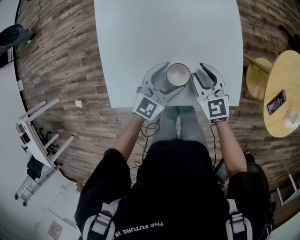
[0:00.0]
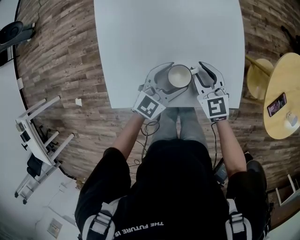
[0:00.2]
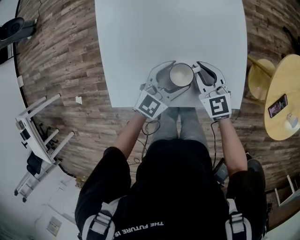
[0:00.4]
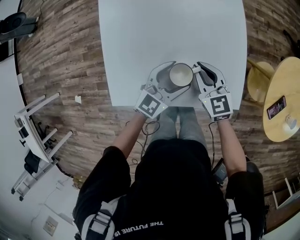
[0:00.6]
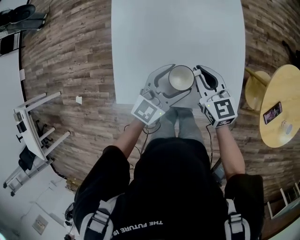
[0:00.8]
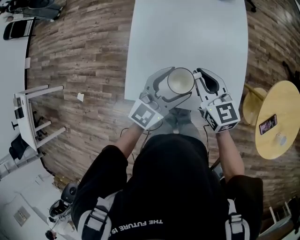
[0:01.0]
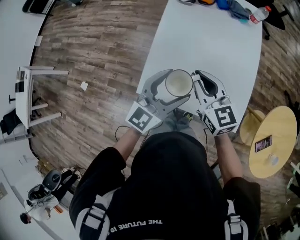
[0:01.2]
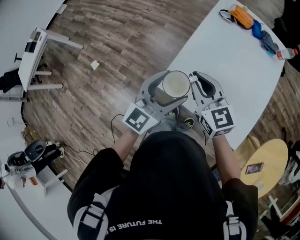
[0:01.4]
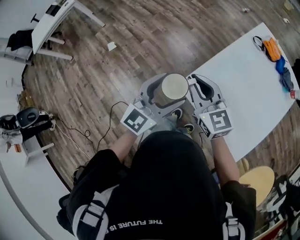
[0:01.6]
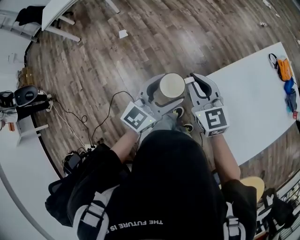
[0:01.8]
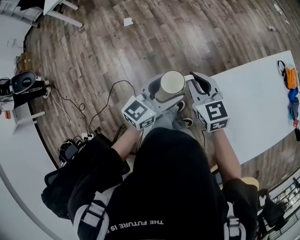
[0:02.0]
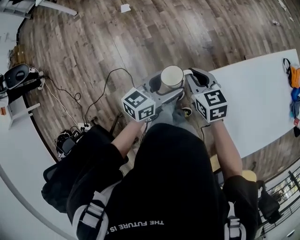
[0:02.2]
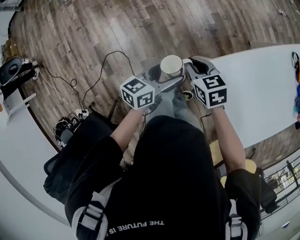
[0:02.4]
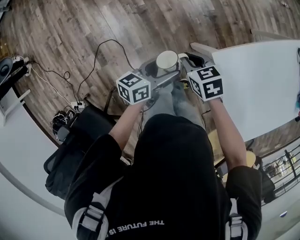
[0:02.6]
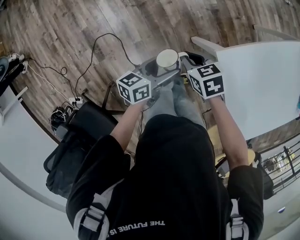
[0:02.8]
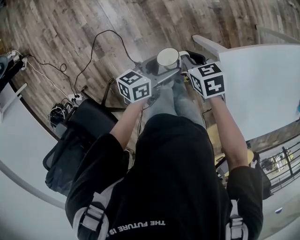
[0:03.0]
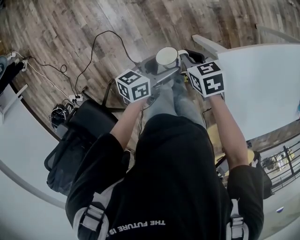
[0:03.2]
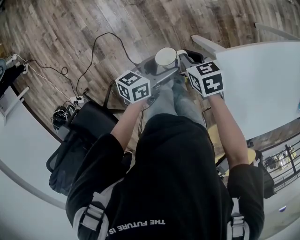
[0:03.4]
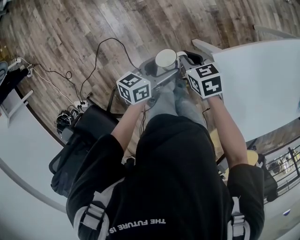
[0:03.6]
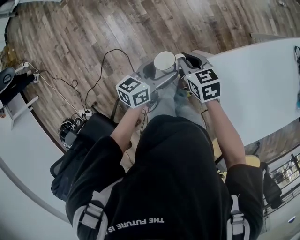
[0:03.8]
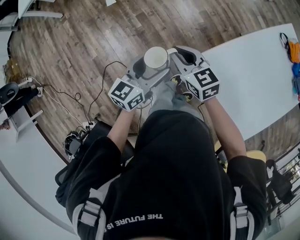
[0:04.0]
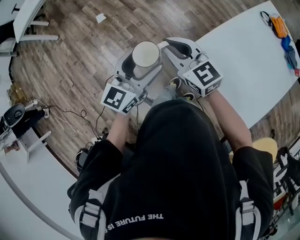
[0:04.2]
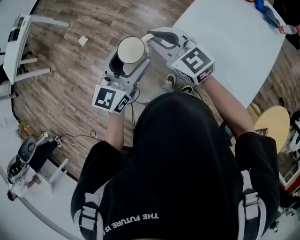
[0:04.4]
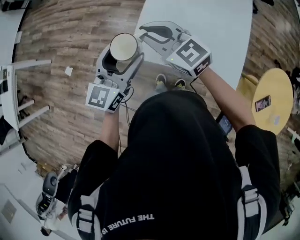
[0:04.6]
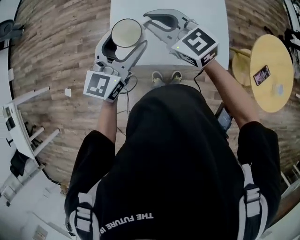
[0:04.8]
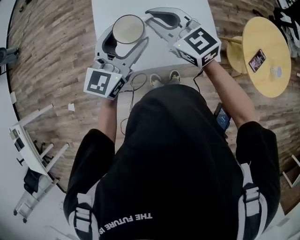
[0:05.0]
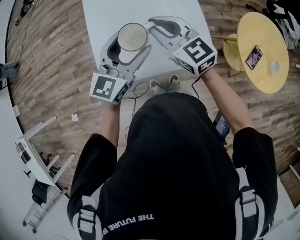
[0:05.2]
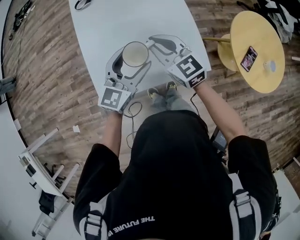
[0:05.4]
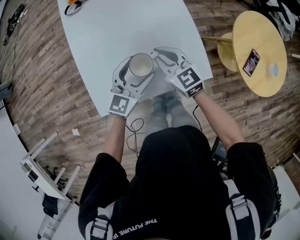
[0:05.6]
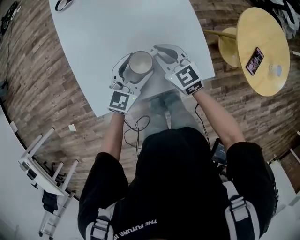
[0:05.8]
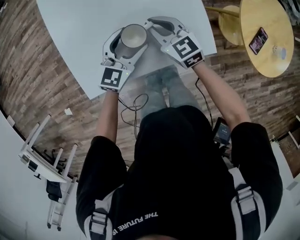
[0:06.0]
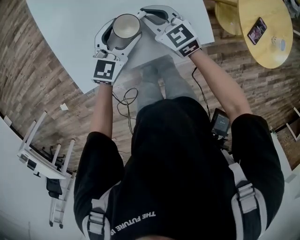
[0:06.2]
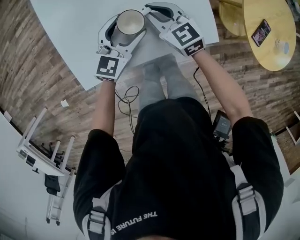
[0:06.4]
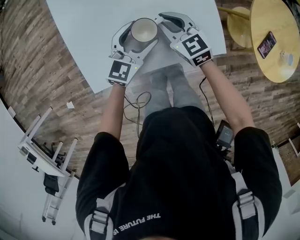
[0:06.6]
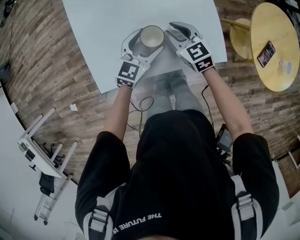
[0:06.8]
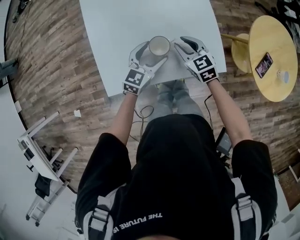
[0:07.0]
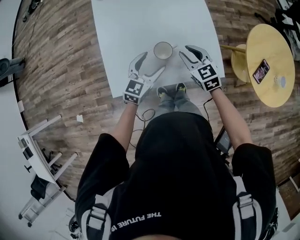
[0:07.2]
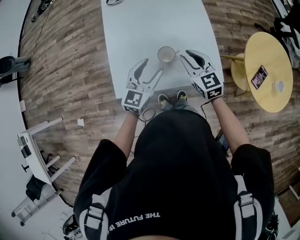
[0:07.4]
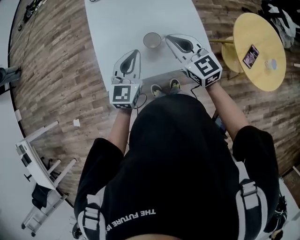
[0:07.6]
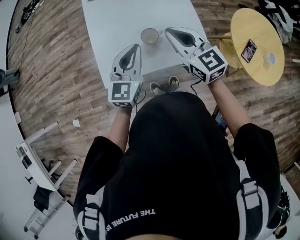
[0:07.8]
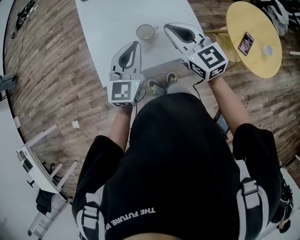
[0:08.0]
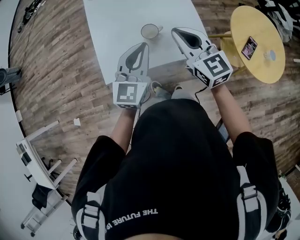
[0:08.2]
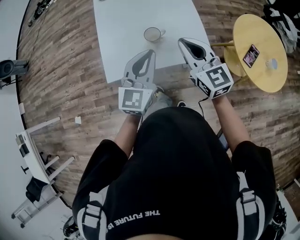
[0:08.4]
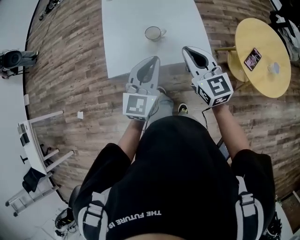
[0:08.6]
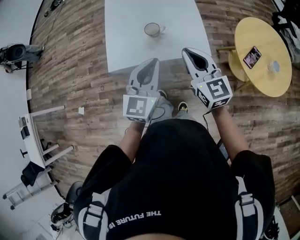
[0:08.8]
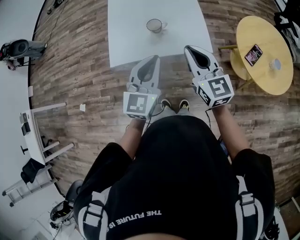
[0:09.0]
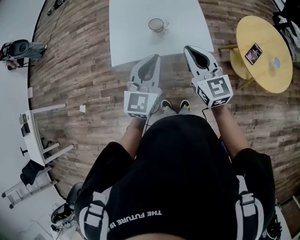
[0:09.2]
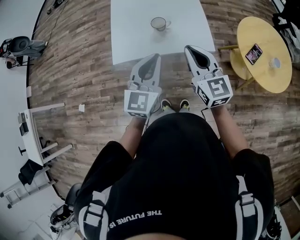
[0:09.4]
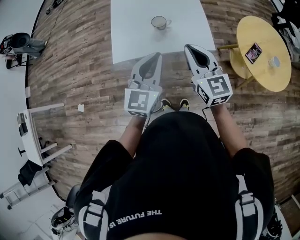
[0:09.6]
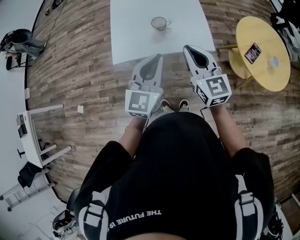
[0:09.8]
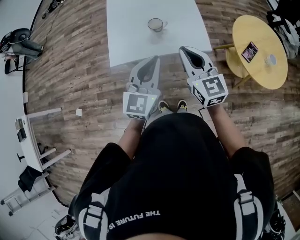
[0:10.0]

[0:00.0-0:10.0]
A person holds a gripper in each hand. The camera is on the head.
0:00.0 to 0:01.4: The right gripper ends up approximately 35 cm from where it was, and changes its angle by approximately 40 degrees. The left gripper is displaced upward by approximately 25 cm, and rotates about 40 degrees.
0:01.4 to 0:02.8: The left gripper changes place by about 40 cm, and twists about 60 degrees counterclockwise, seen from behind; the right gripper changes place by some 40 cm, and points its fingers about 40 degrees further downward.
0:02.8 to 0:04.2: The two grippers go about 25 cm upward. The right gripper angles its fingers upward, by some 50 degrees. The left gripper rotates around the line of its fingers by about 50 degrees, clockwise from behind.
0:04.2 to 0:05.8: The pair of grippers is taken roughly 50 cm. The right gripper turns by about 70 degrees, while the left gripper turns by approximately 70 degrees.
0:05.8 to 0:07.2: The left gripper ends up about 5 cm from where it was.
0:07.2 to 0:08.6: Both grippers travel together upward and backward, about 25 cm. The right gripper changes its angle by roughly 20 degrees, and closes up; the left gripper rotates about 20 degrees, and closes its fingers.
0:08.6 to 0:10.0: Both grippers travel together backward, some 10 cm.

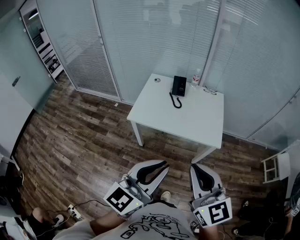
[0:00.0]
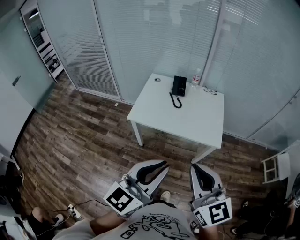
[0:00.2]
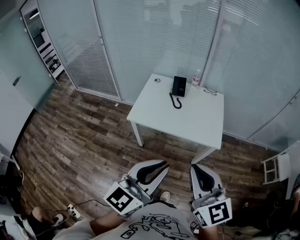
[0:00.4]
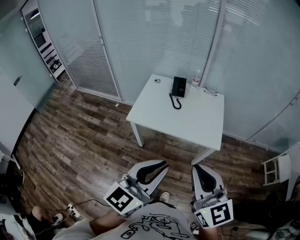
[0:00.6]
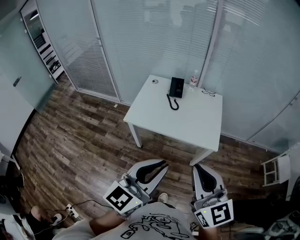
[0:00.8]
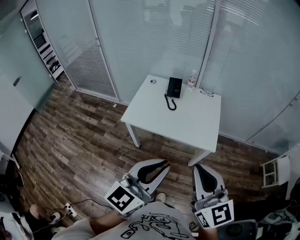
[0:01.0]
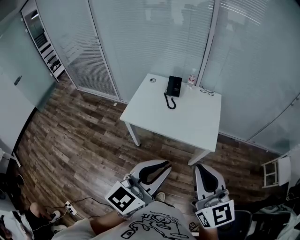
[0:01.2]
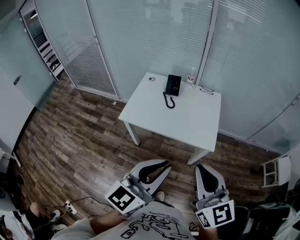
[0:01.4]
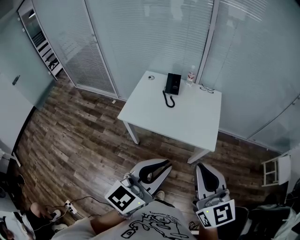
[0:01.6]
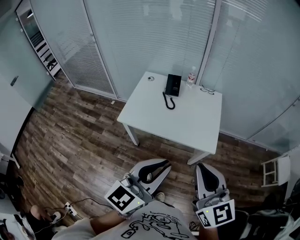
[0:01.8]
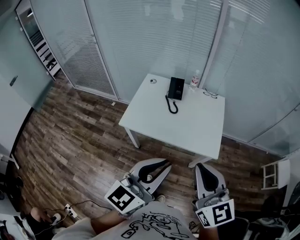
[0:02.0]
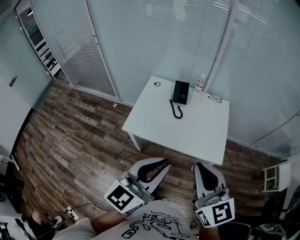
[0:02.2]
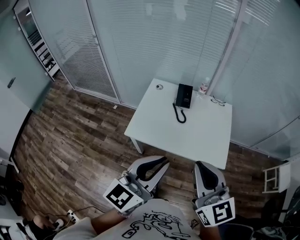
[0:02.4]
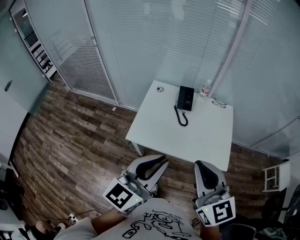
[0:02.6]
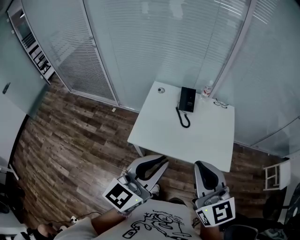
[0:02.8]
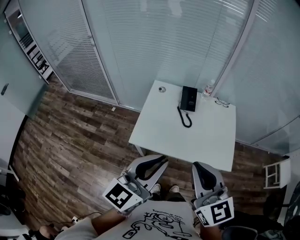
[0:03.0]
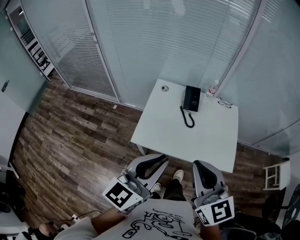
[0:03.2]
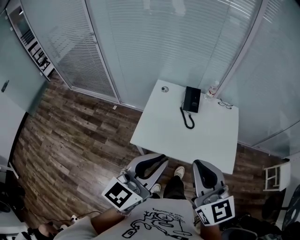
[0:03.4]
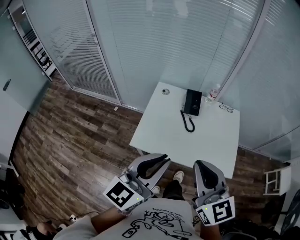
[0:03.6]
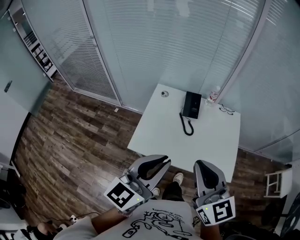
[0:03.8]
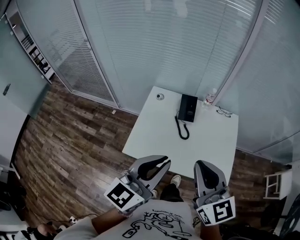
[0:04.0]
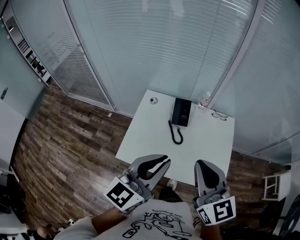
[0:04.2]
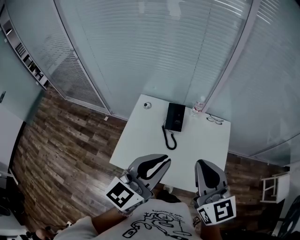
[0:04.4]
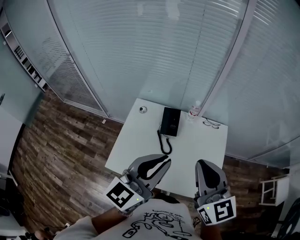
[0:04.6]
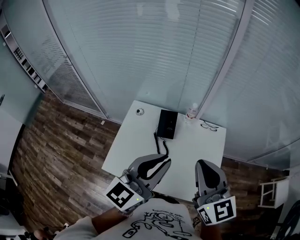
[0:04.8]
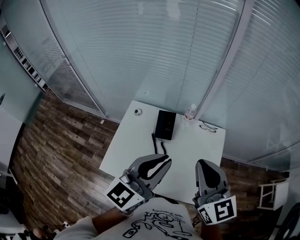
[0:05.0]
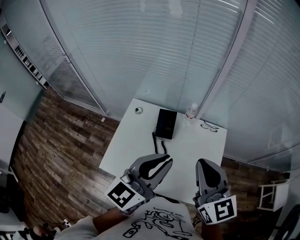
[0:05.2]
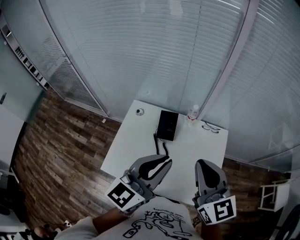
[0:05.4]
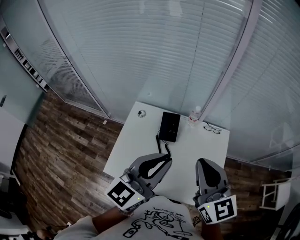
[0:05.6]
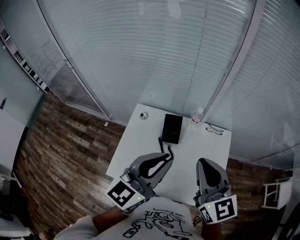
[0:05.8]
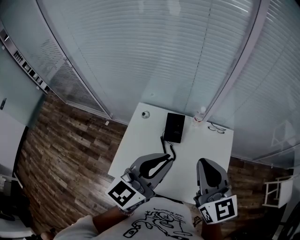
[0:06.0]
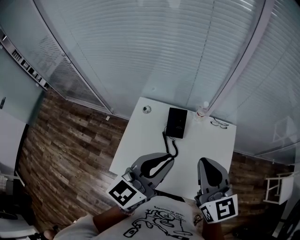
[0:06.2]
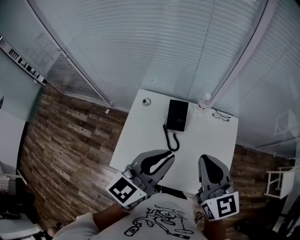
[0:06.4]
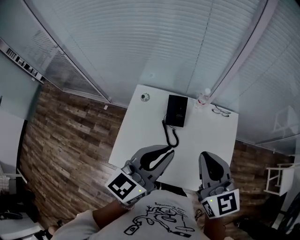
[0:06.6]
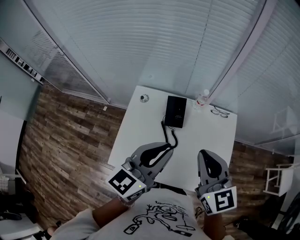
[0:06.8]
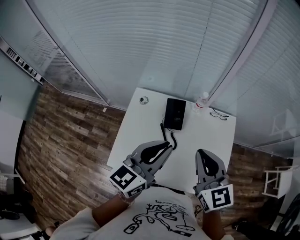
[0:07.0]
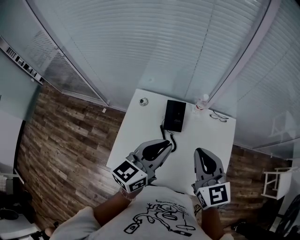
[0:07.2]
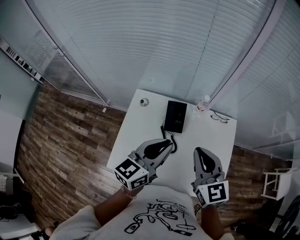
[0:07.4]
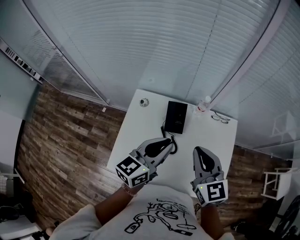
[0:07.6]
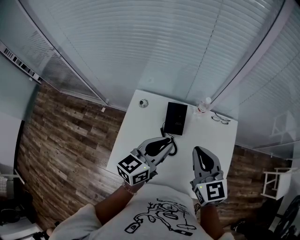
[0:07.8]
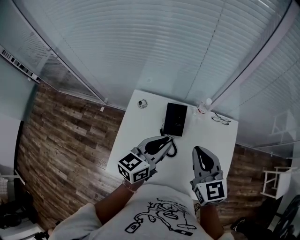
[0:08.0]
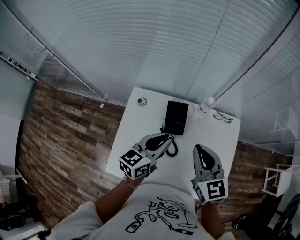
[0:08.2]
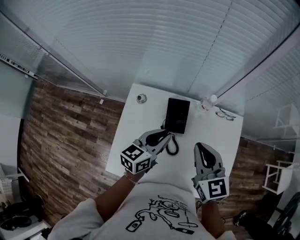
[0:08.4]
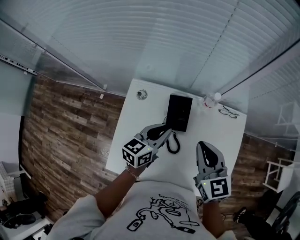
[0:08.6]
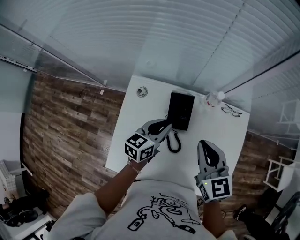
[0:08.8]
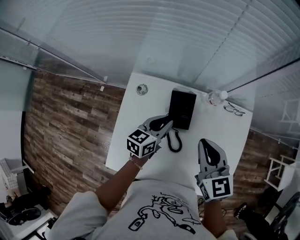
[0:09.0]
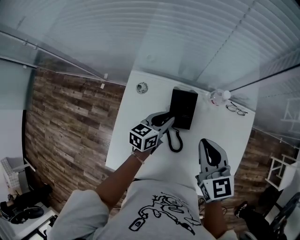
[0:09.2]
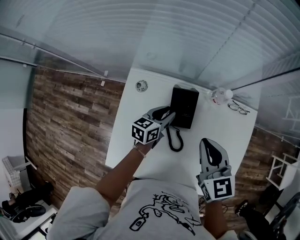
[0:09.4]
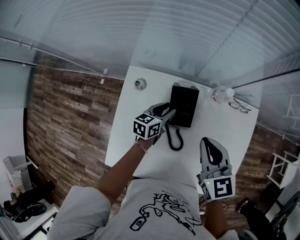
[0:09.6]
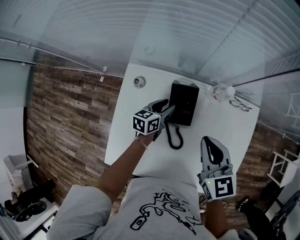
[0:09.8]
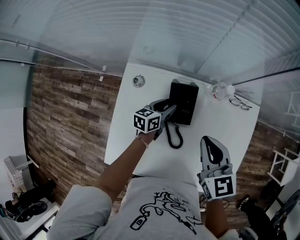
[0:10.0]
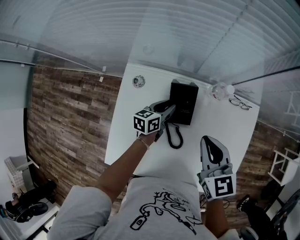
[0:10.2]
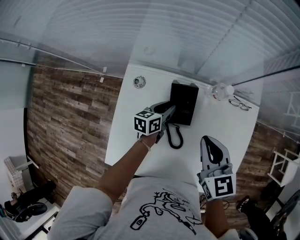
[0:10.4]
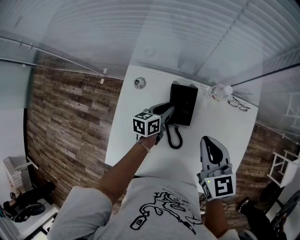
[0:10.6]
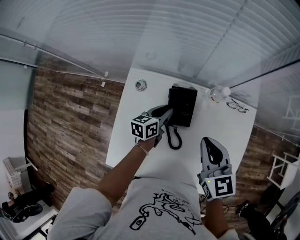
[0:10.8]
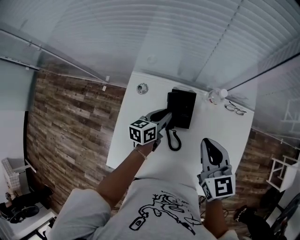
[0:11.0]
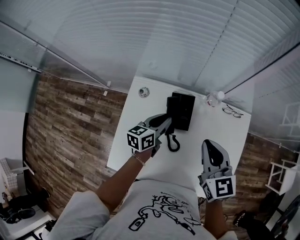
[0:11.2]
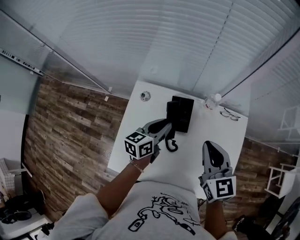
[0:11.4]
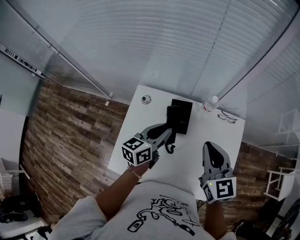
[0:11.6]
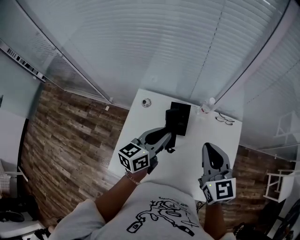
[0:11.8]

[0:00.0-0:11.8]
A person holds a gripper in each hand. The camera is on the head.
0:00.0 to 0:01.4: Both grippers travel together to the right, about 10 cm.
0:01.4 to 0:03.0: Both grippers move to the left and forward, some 30 cm.
0:03.0 to 0:04.4: Both grippers move forward and to the right, roughly 20 cm.
0:04.4 to 0:06.0: Both grippers move forward, some 10 cm.
0:06.0 to 0:07.4: The right gripper heads downward, covering some 10 cm; the left gripper moves downward and forward, roughly 10 cm.
0:07.4 to 0:08.8: The left gripper shifts some 25 cm downward and forward. Meanwhile the right gripper travels forward and downward by about 15 cm.
0:08.8 to 0:10.4: The right gripper changes place by some 5 cm, while the left gripper shifts approximately 15 cm downward and forward.
0:10.4 to 0:11.8: The right gripper goes approximately 15 cm upward and backward; the left gripper travels upward and backward by approximately 30 cm, and rotates approximately 20 degrees.

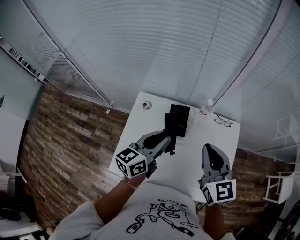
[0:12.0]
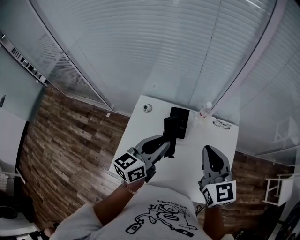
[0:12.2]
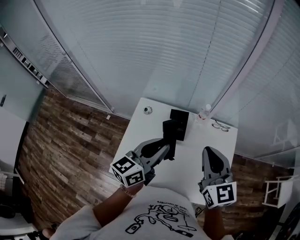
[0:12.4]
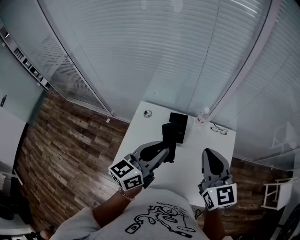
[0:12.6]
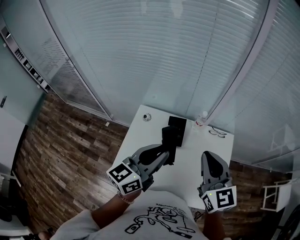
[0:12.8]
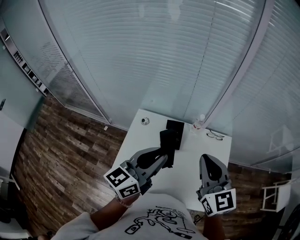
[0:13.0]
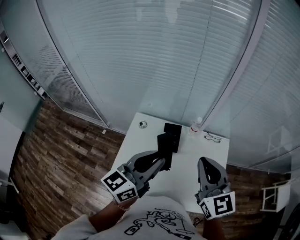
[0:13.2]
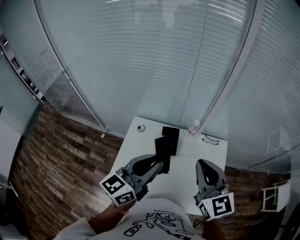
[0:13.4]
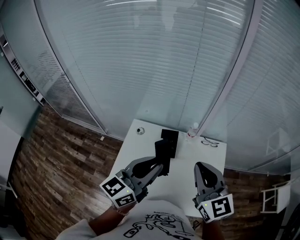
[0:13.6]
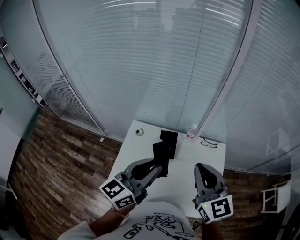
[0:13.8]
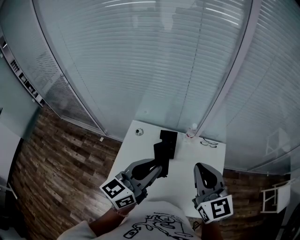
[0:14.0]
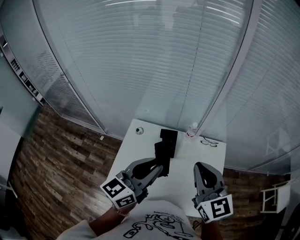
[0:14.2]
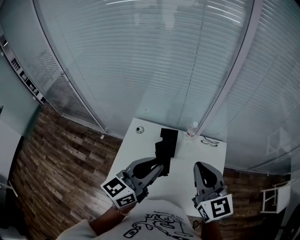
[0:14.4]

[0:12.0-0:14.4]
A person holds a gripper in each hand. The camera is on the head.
0:12.0 to 0:13.2: The right gripper moves upward, some 10 cm; the left gripper travels upward and backward by roughly 15 cm.
0:13.2 to 0:14.4: Neither gripper changes place.
